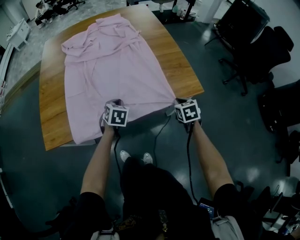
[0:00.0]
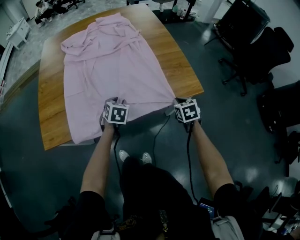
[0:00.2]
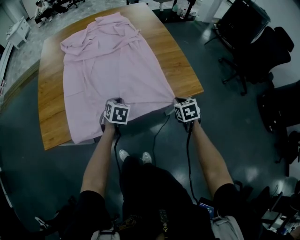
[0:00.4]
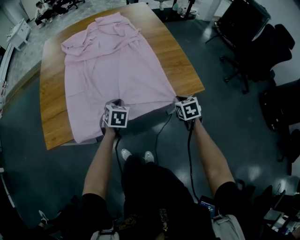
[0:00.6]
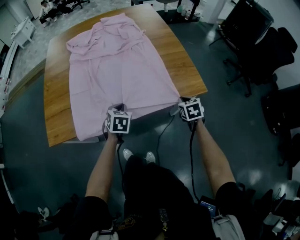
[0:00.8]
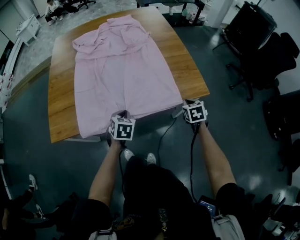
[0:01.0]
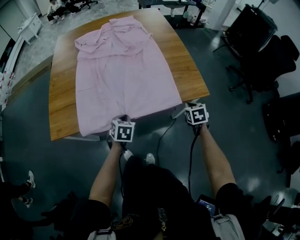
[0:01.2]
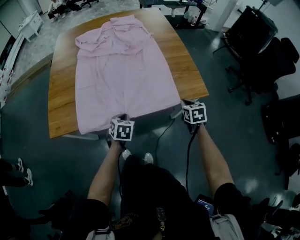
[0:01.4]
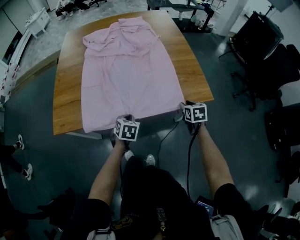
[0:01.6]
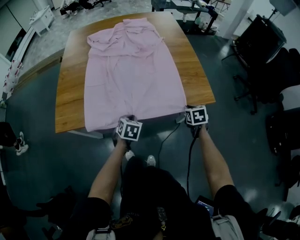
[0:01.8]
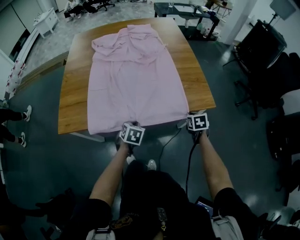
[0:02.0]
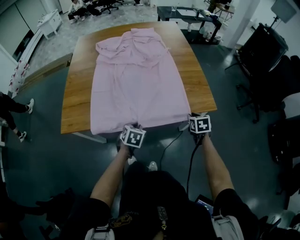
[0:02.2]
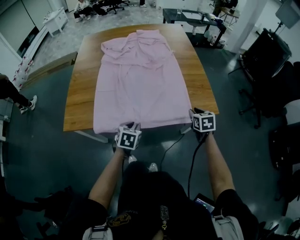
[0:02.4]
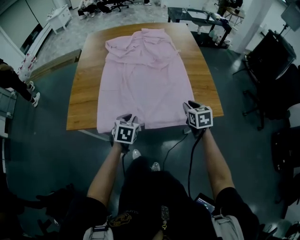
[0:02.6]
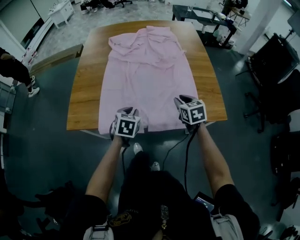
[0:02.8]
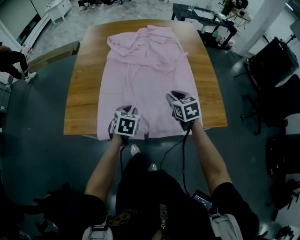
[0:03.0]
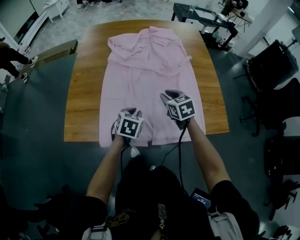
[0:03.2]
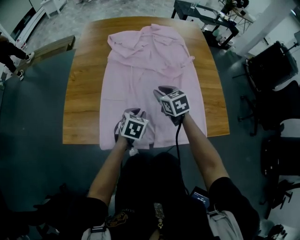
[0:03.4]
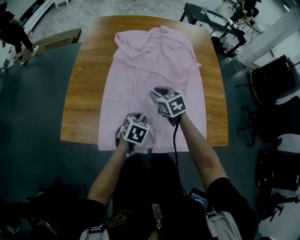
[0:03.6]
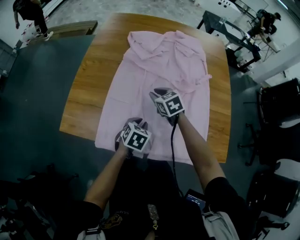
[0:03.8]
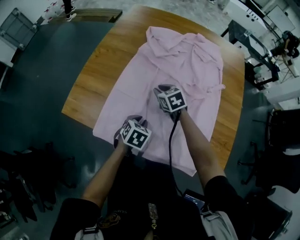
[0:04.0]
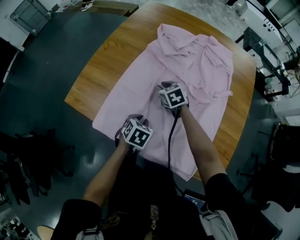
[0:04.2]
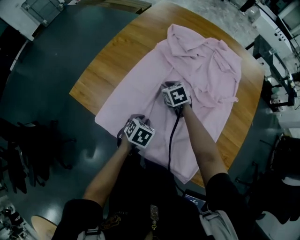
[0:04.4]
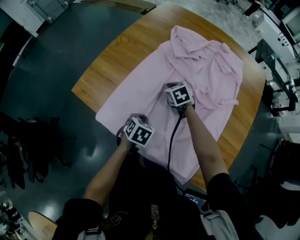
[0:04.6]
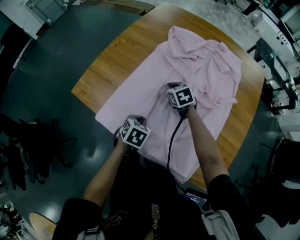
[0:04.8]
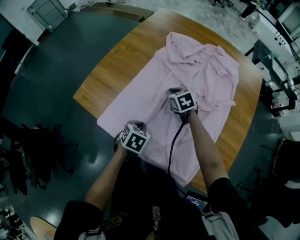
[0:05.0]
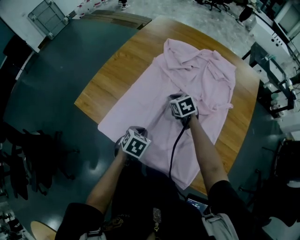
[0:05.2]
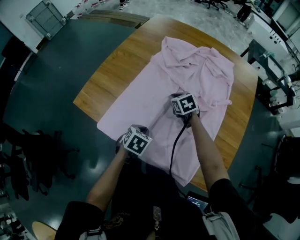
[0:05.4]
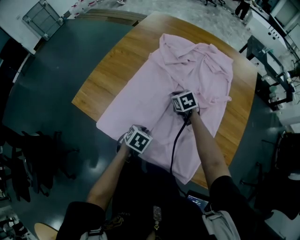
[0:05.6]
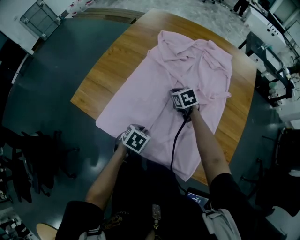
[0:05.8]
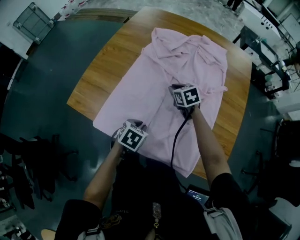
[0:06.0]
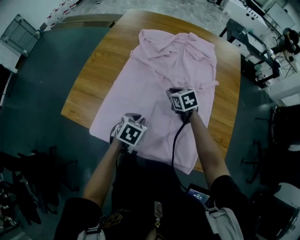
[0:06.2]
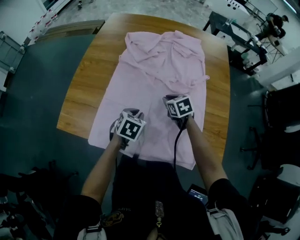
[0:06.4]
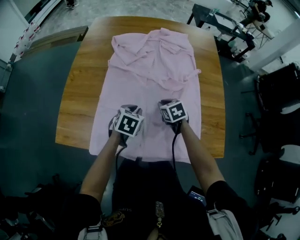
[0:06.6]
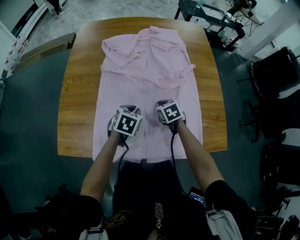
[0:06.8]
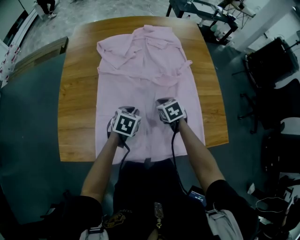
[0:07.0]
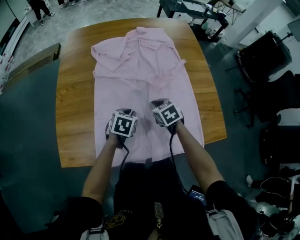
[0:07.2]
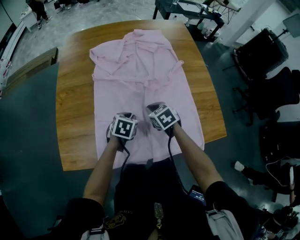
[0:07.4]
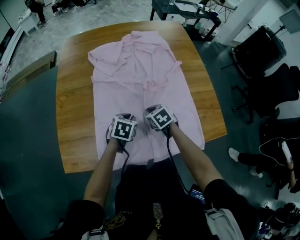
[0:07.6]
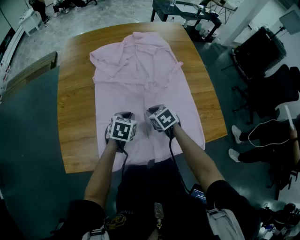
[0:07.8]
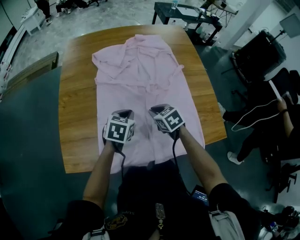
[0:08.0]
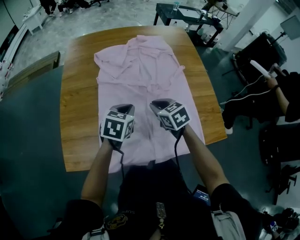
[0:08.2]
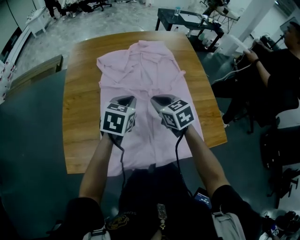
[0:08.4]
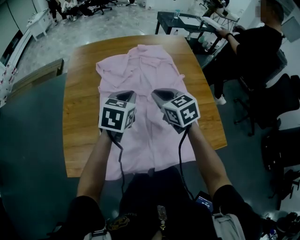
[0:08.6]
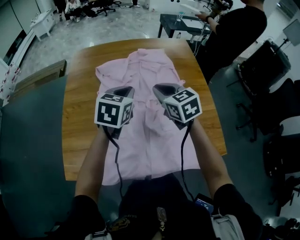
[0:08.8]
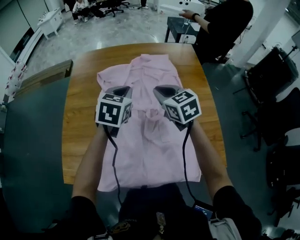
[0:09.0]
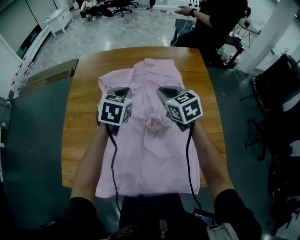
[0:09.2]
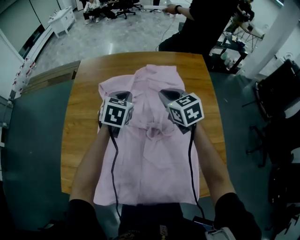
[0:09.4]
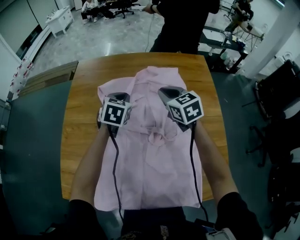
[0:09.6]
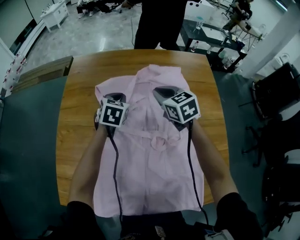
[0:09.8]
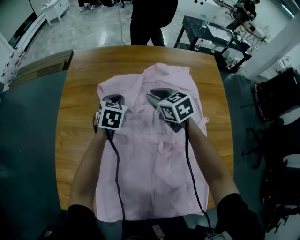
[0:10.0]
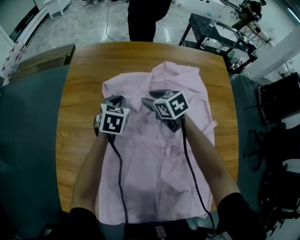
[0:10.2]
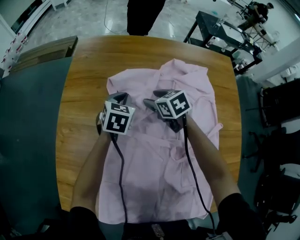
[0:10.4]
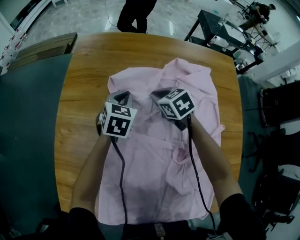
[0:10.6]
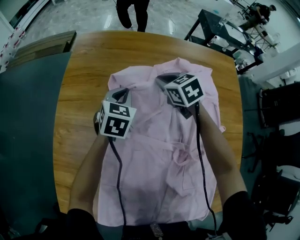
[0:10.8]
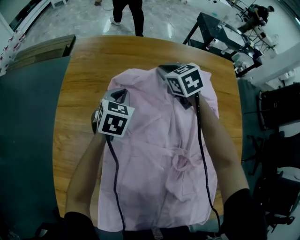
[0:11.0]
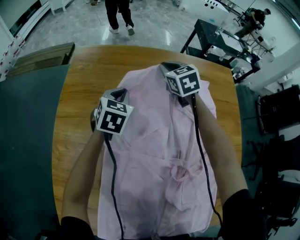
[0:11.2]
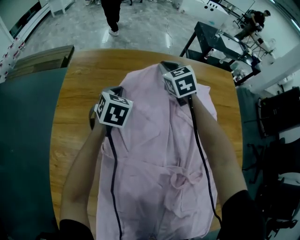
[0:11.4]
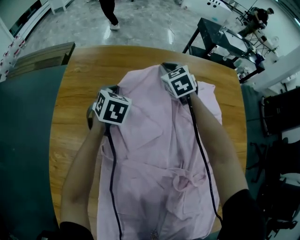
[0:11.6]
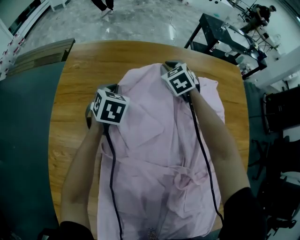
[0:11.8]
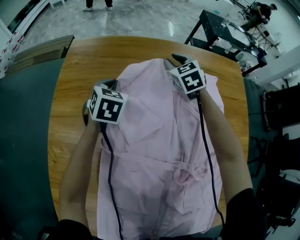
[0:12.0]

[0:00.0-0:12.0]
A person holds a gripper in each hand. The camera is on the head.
0:00.0 to 0:01.6: The right gripper opens up, while the left gripper is displaced backward by approximately 10 cm, and opens, then closes once more.
0:01.6 to 0:03.0: The left gripper is displaced forward, to the left and upward by about 15 cm, while the right gripper shifts about 25 cm to the left, forward and upward, and swivels some 30 degrees.
0:03.0 to 0:04.4: The left gripper heads downward, covering roughly 10 cm, and turns by about 30 degrees. The right gripper moves about 30 cm, and rotates approximately 40 degrees.
0:04.4 to 0:06.0: The left gripper ends up about 5 cm from where it was. The right gripper moves to the right, approximately 10 cm.
0:06.0 to 0:07.6: The right gripper moves some 10 cm, and rotates roughly 30 degrees. Meanwhile the left gripper moves approximately 10 cm, and turns by roughly 30 degrees.
0:07.6 to 0:09.0: The grippers both shift upward and forward by about 25 cm. The left gripper changes its angle by some 20 degrees. The right gripper rotates approximately 30 degrees.
0:09.0 to 0:10.4: Both grippers move forward, downward and to the left, some 30 cm. The right gripper changes its angle by about 20 degrees, and opens its fingers.
0:10.4 to 0:12.0: The left gripper moves forward, some 10 cm. Meanwhile the right gripper goes roughly 25 cm forward and to the right, swivels roughly 30 degrees, and closes.

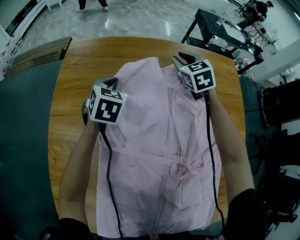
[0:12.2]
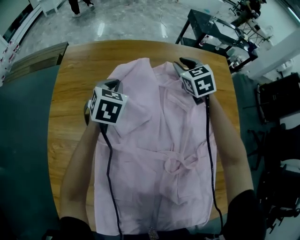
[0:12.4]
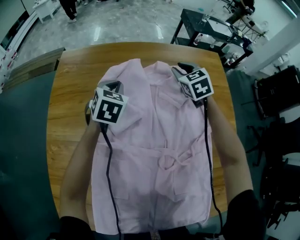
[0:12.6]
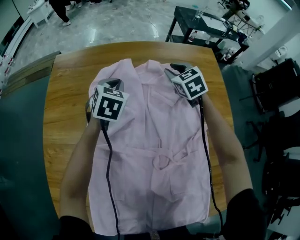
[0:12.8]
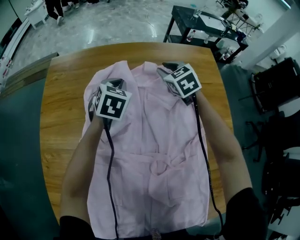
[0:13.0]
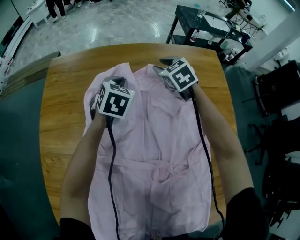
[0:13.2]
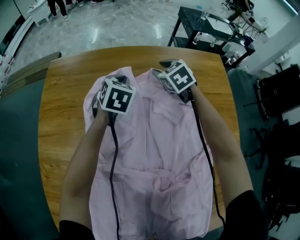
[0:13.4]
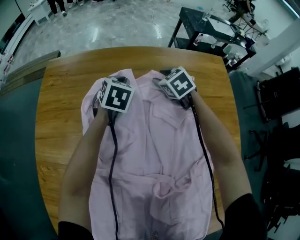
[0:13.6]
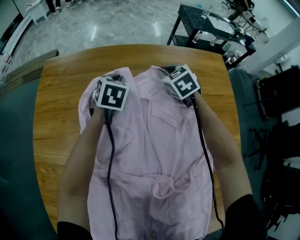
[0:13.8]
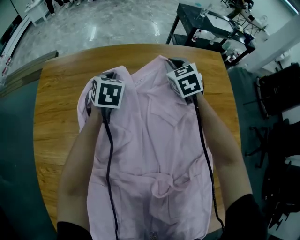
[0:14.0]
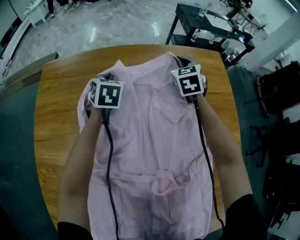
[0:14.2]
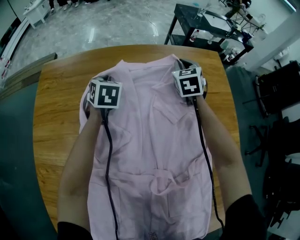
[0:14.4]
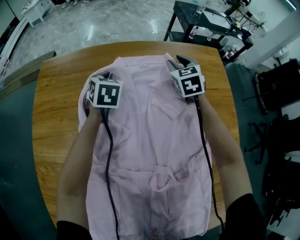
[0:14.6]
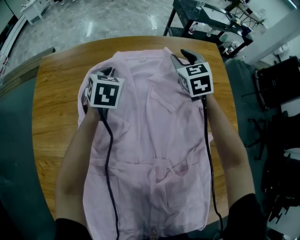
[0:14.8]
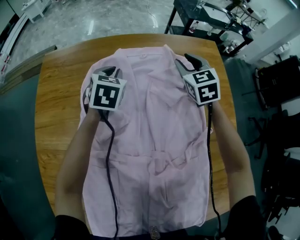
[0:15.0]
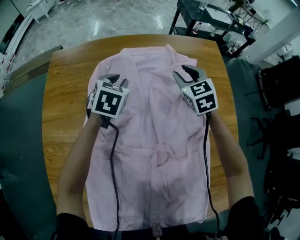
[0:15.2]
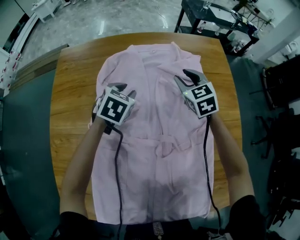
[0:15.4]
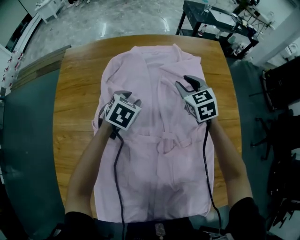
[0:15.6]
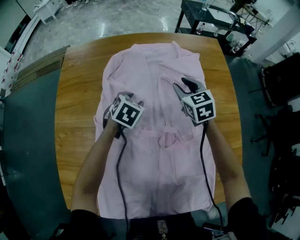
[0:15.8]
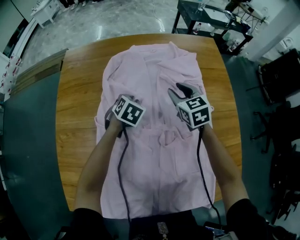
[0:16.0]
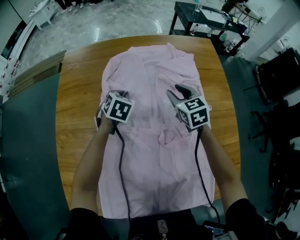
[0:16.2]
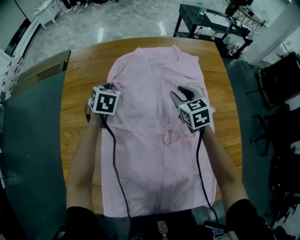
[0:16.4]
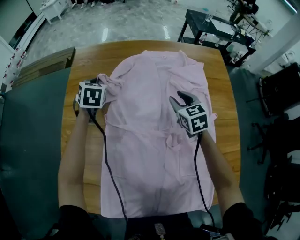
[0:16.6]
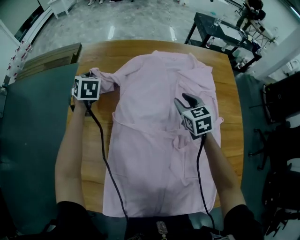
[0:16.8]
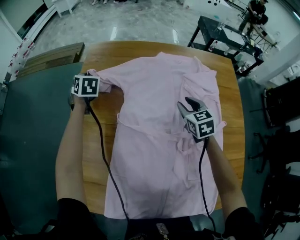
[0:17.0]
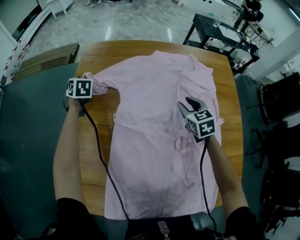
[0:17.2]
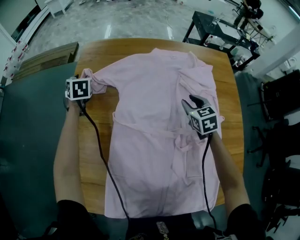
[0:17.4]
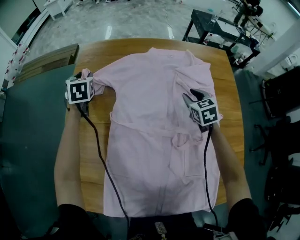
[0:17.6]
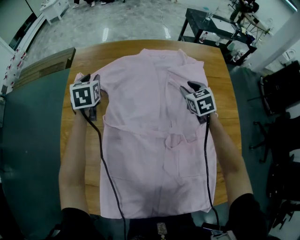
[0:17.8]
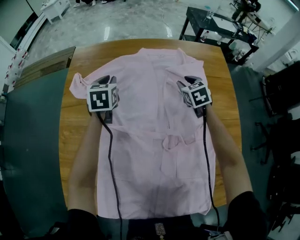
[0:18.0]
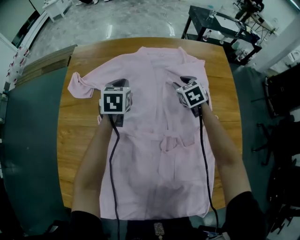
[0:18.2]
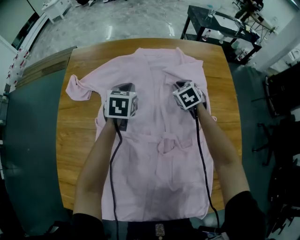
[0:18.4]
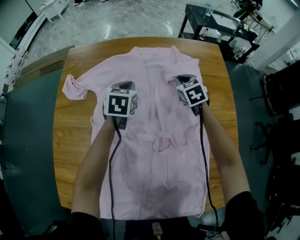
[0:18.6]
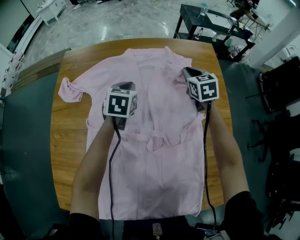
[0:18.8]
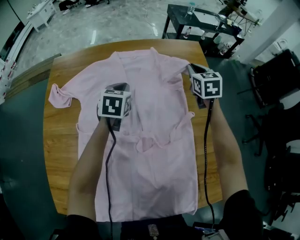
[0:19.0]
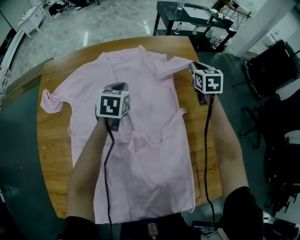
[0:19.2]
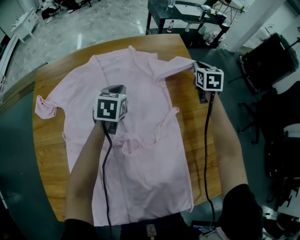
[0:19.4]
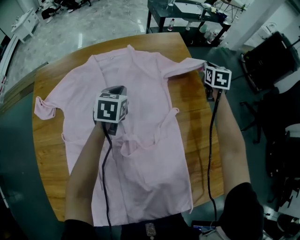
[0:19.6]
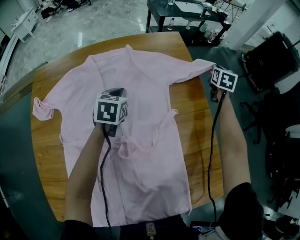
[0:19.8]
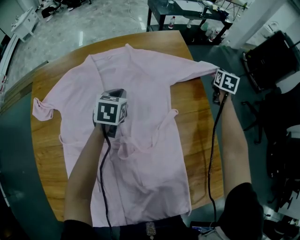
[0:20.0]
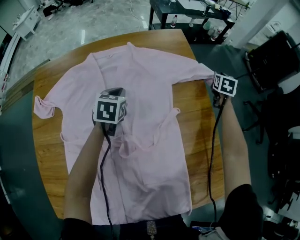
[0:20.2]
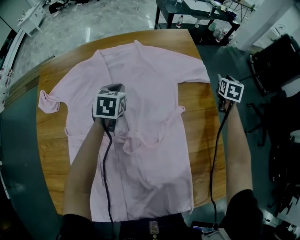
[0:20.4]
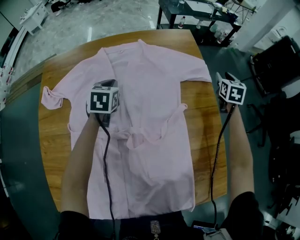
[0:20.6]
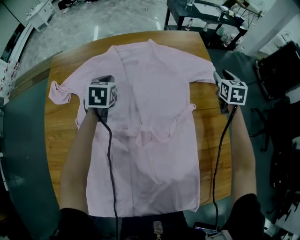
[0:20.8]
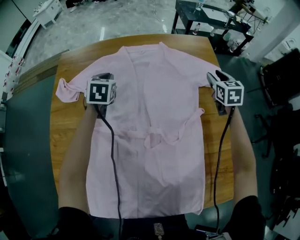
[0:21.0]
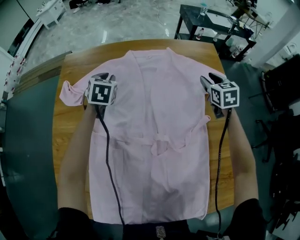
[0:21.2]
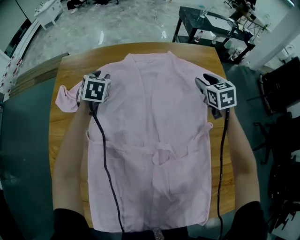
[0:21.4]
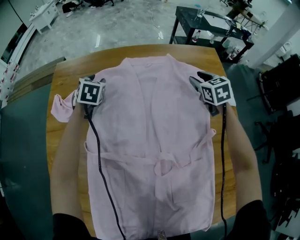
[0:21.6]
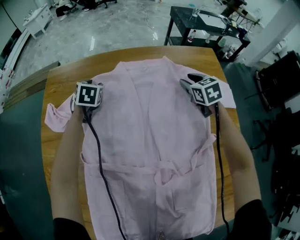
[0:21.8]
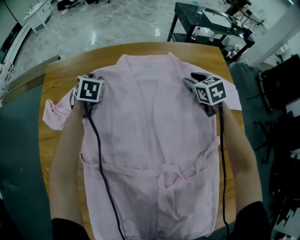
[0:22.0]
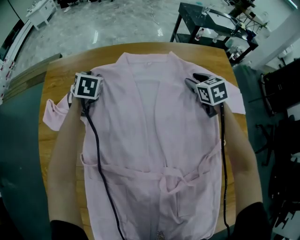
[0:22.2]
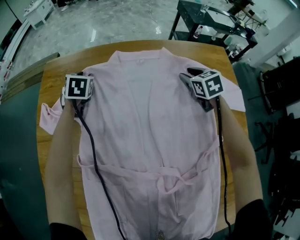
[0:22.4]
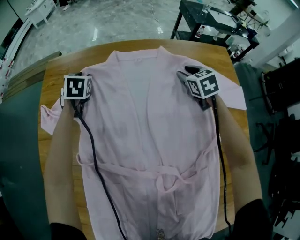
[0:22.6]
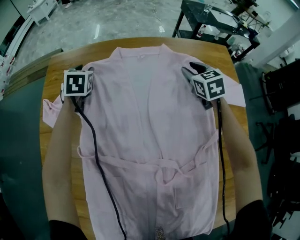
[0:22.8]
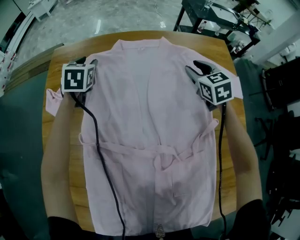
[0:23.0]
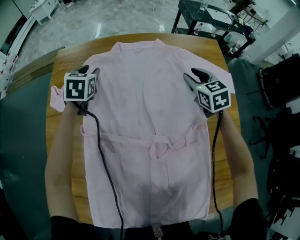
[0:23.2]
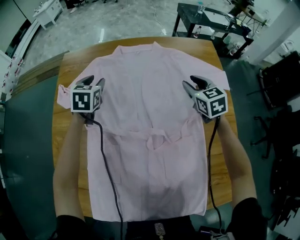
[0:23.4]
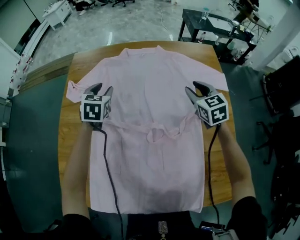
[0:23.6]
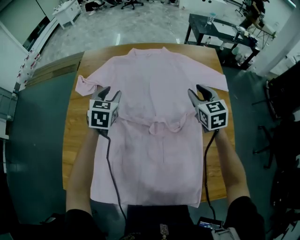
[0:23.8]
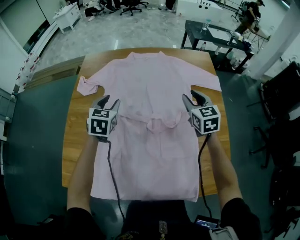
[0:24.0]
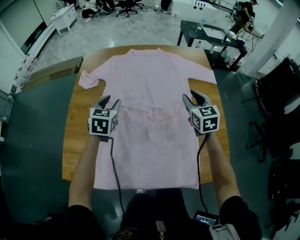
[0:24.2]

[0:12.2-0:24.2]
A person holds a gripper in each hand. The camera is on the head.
0:12.2 to 0:13.8: The left gripper heads to the right and forward, covering roughly 15 cm; the right gripper shifts about 10 cm downward and to the right.
0:13.8 to 0:15.2: The right gripper shifts about 15 cm backward, upward and to the right, and opens up. Meanwhile the left gripper goes some 10 cm backward.
0:15.2 to 0:16.6: The right gripper moves backward and to the left, some 15 cm; the left gripper shifts about 20 cm to the left, and opens and closes again.
0:16.6 to 0:18.2: The left gripper goes some 15 cm to the right, and opens, then closes again, while the right gripper heads forward, to the right and downward, covering some 10 cm.
0:18.2 to 0:19.8: The right gripper shifts by about 40 cm, rotates some 50 degrees, and closes up; the left gripper changes place by approximately 20 cm.
0:19.8 to 0:21.2: The left gripper shifts by some 25 cm, and turns by approximately 20 degrees. The right gripper moves some 25 cm, swivels approximately 40 degrees, and opens.
0:21.2 to 0:22.6: The right gripper moves forward, downward and to the left, some 20 cm. Meanwhile the left gripper is displaced forward, to the left and downward by approximately 20 cm.
0:22.6 to 0:24.2: Both grippers move backward and upward, approximately 40 cm.
